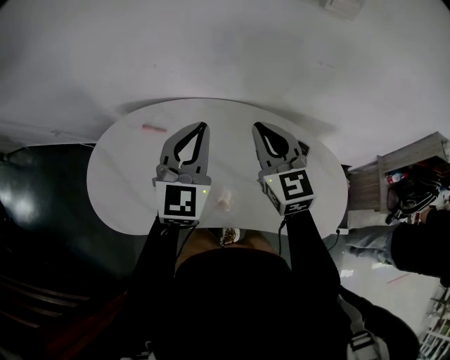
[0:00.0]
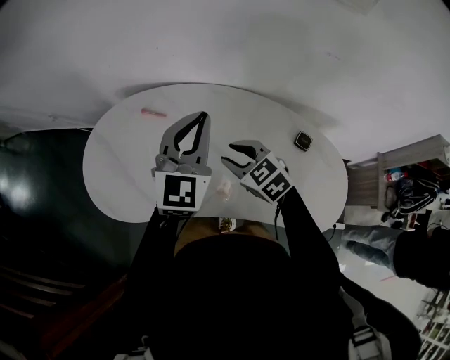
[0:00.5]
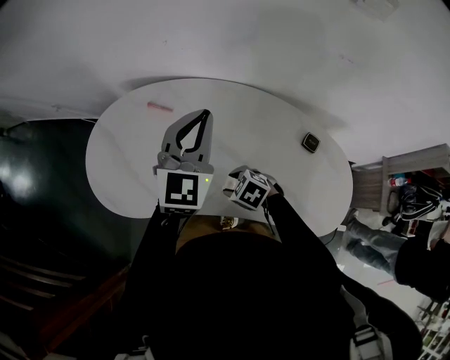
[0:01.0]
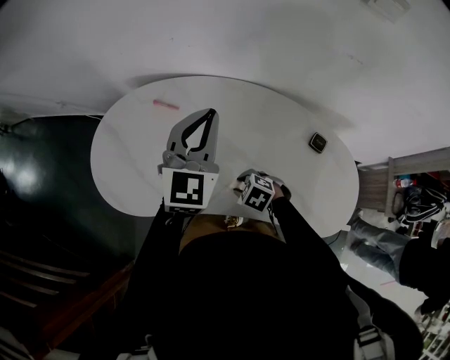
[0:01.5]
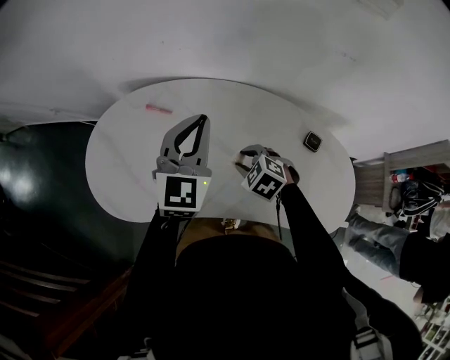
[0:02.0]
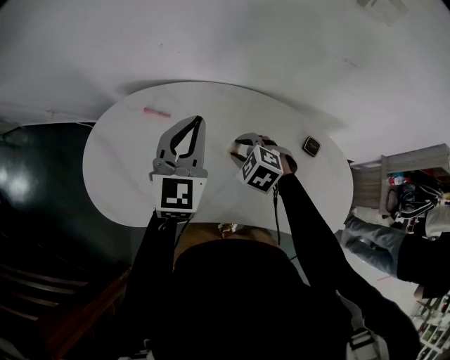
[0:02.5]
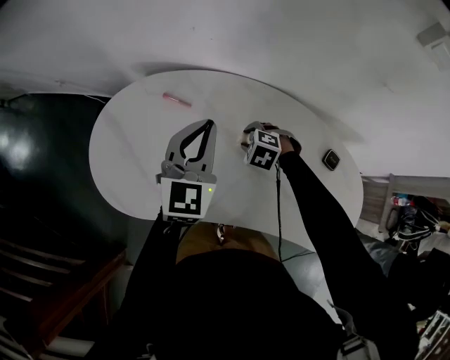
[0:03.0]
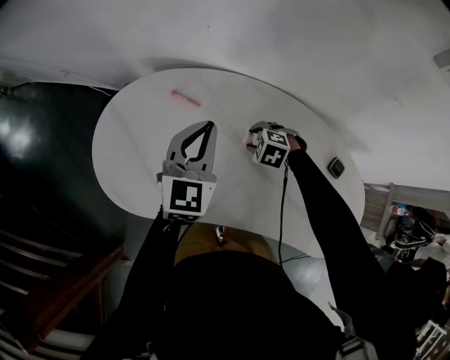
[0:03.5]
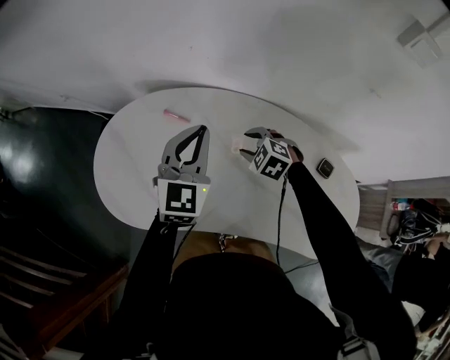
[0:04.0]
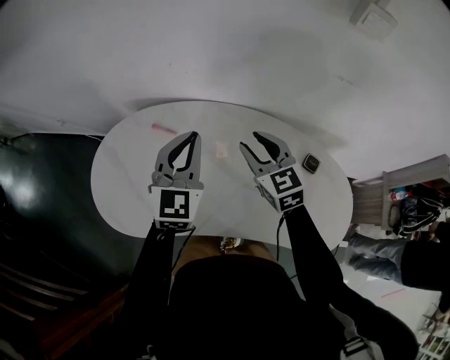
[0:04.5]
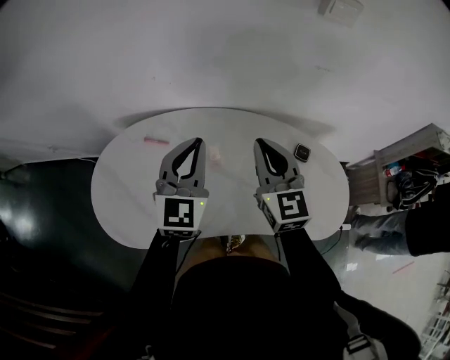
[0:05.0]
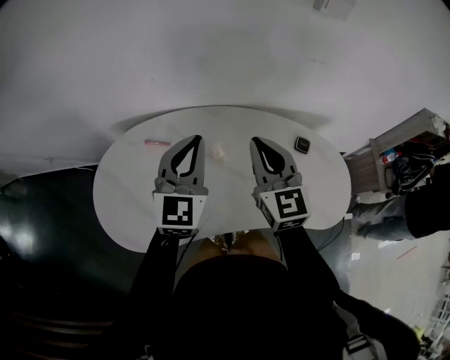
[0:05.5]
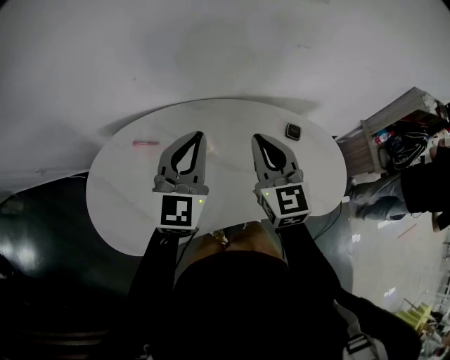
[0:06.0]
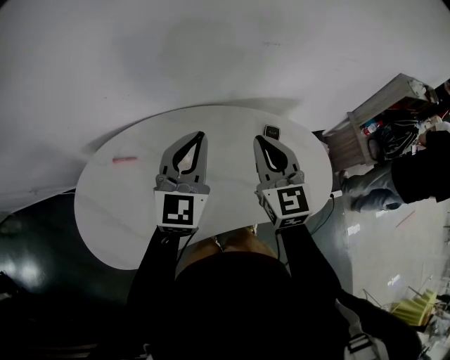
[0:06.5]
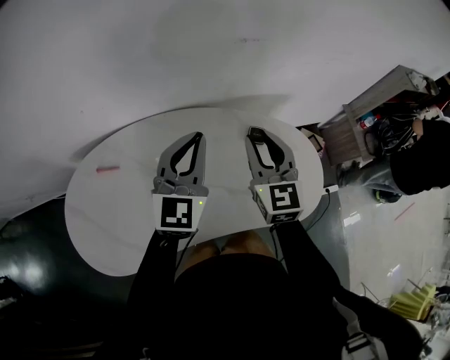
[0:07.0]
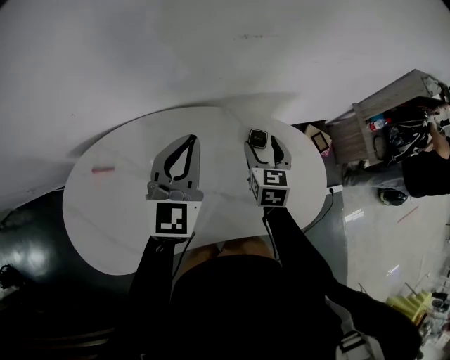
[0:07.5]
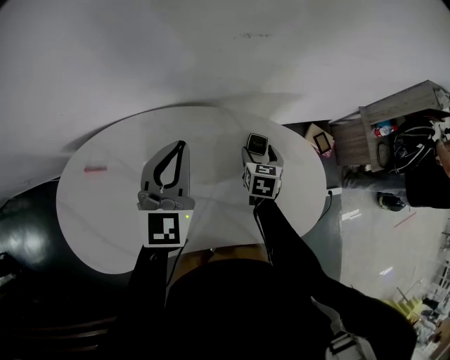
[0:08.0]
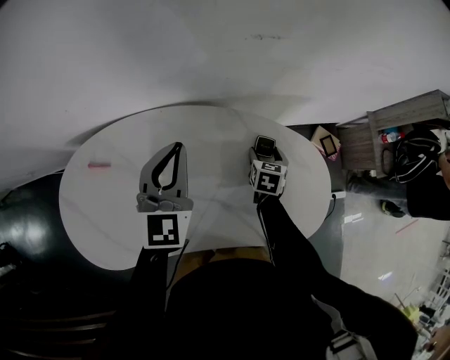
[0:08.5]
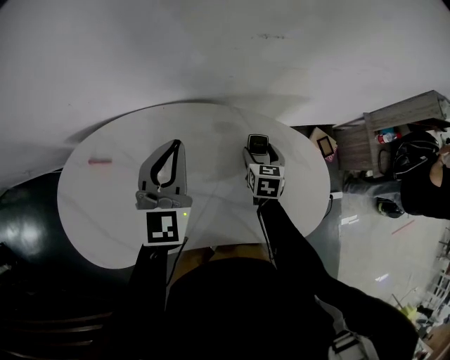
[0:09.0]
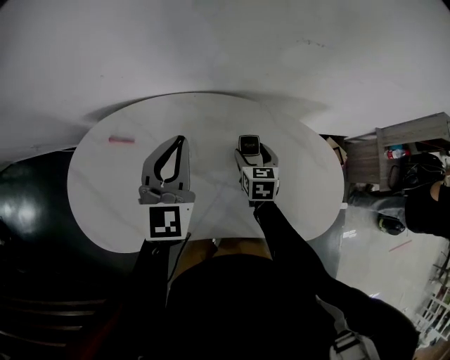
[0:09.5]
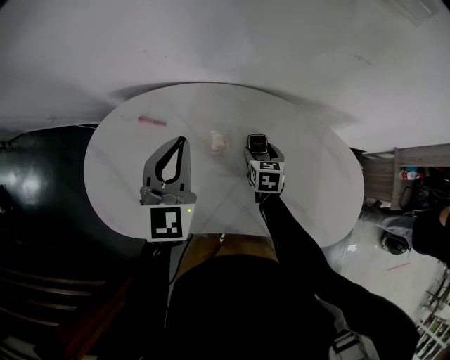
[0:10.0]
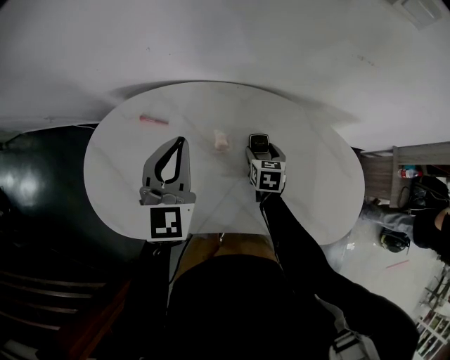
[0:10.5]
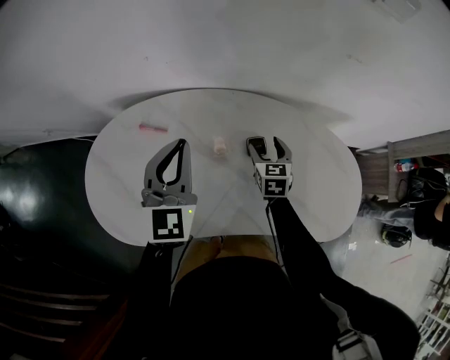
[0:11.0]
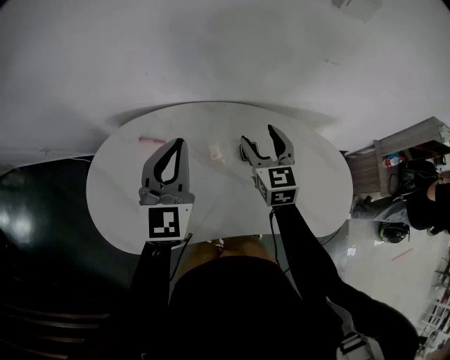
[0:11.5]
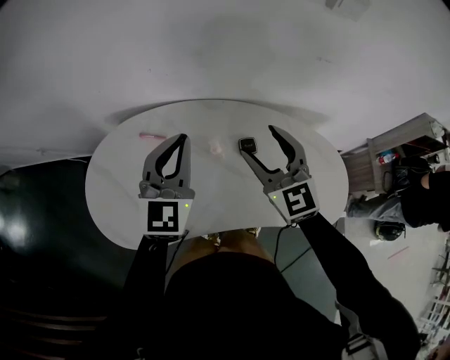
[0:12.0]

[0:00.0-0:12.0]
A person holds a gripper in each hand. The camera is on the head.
0:00.0 to 0:02.0: The right gripper shifts about 25 cm downward, tips its fingers downward by approximately 50 degrees, and opens up, while the left gripper moves approximately 5 cm.
0:02.0 to 0:04.0: The right gripper is displaced forward by approximately 10 cm, while the left gripper goes approximately 5 cm forward.
0:04.0 to 0:06.0: The left gripper changes place by some 10 cm, and swivels approximately 20 degrees, while the right gripper goes roughly 25 cm upward, points its fingers approximately 50 degrees further upward, and closes its fingers.
0:06.0 to 0:08.0: The right gripper heads downward, to the right and forward, covering roughly 40 cm, tips its fingers downward by roughly 40 degrees, and opens its fingers. Meanwhile the left gripper goes roughly 20 cm to the right, forward and downward.
0:08.0 to 0:10.0: The left gripper shifts roughly 20 cm to the left and backward, while the right gripper goes roughly 20 cm to the left, and swivels approximately 20 degrees.
0:10.0 to 0:12.0: The left gripper shifts about 5 cm upward, while the right gripper moves upward, approximately 30 cm, and points its fingers approximately 40 degrees further upward.

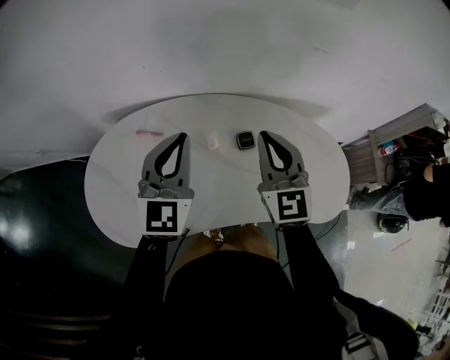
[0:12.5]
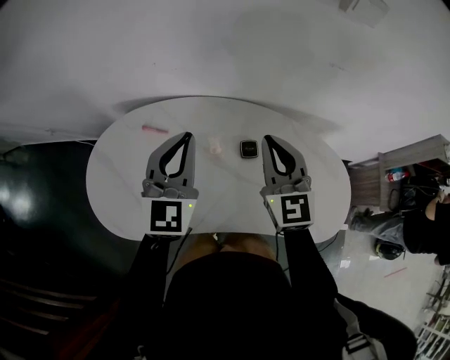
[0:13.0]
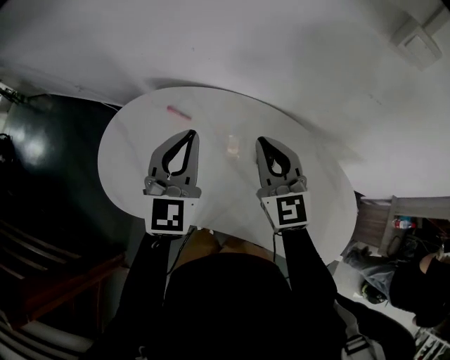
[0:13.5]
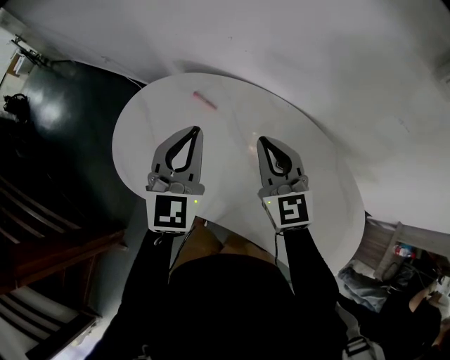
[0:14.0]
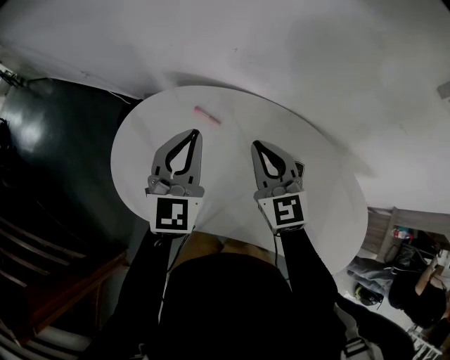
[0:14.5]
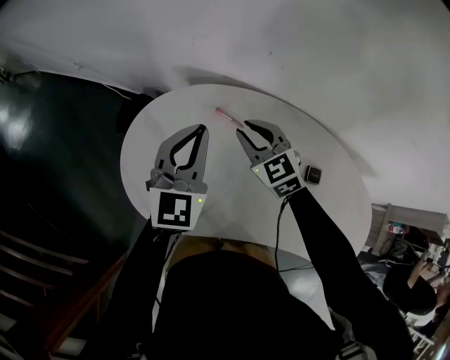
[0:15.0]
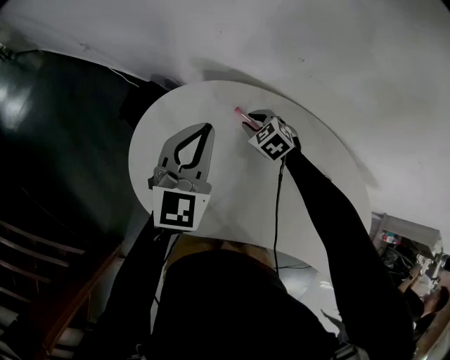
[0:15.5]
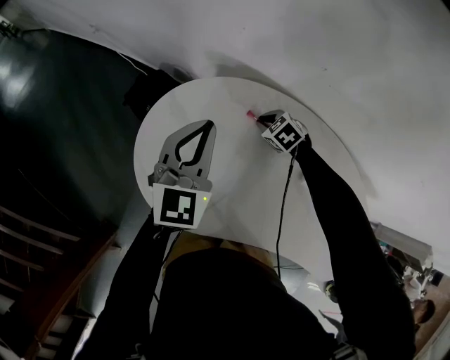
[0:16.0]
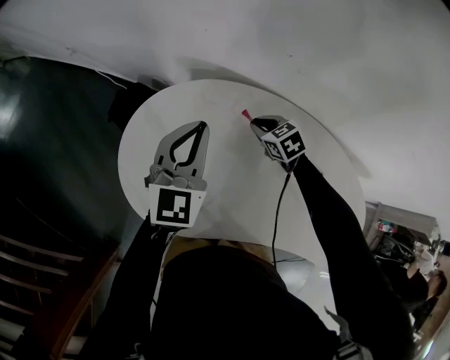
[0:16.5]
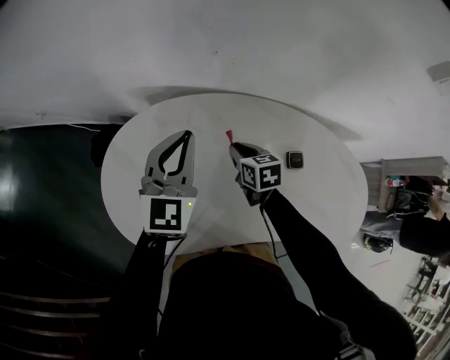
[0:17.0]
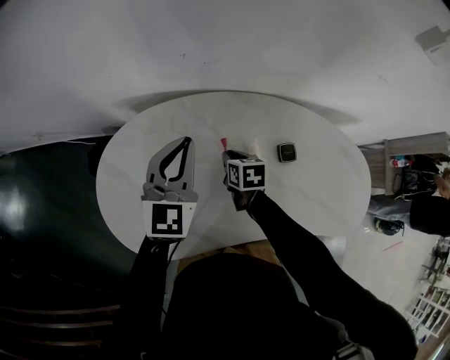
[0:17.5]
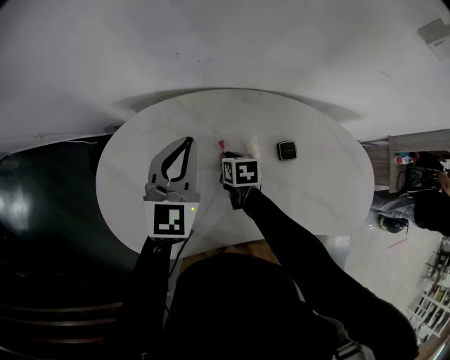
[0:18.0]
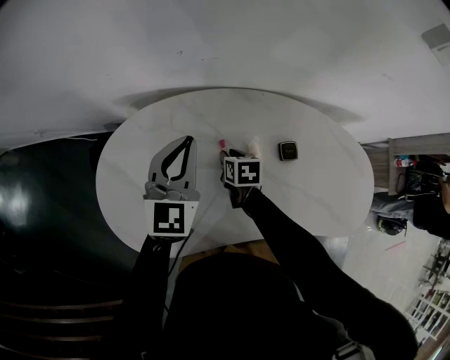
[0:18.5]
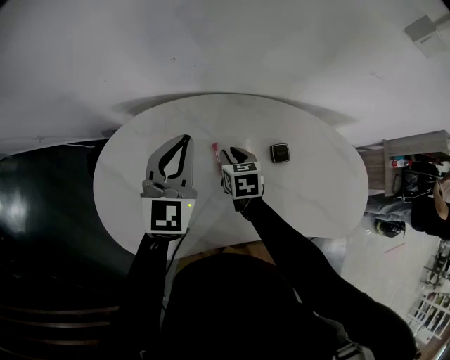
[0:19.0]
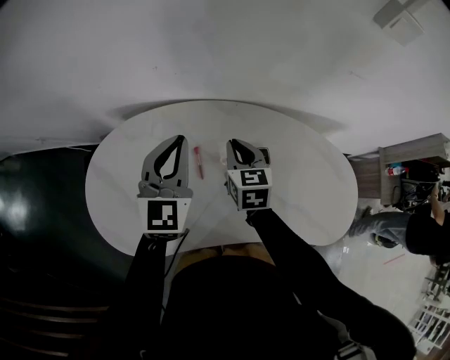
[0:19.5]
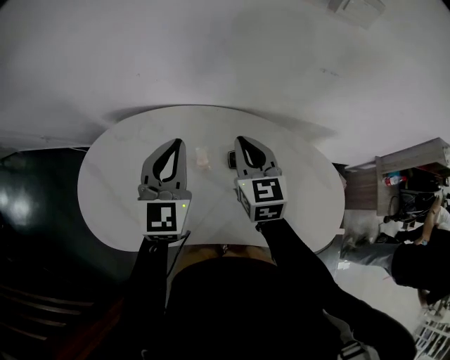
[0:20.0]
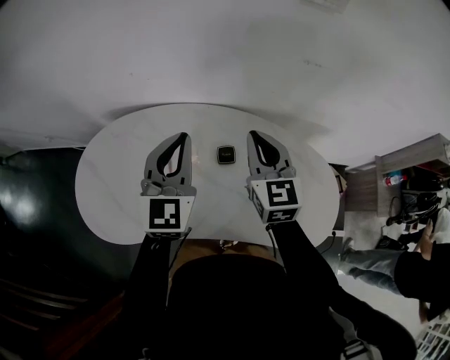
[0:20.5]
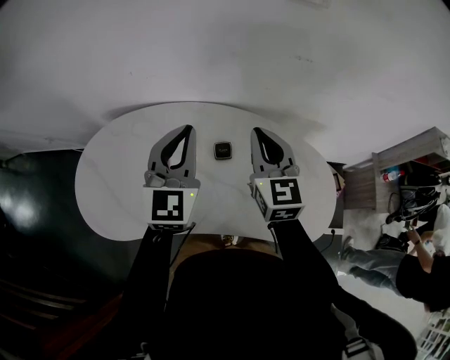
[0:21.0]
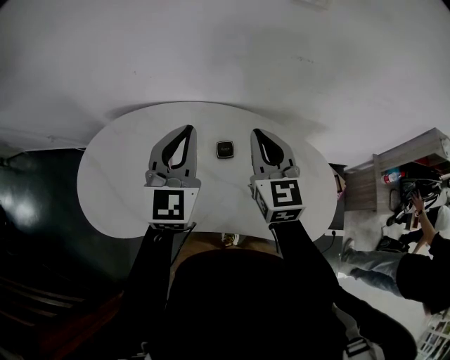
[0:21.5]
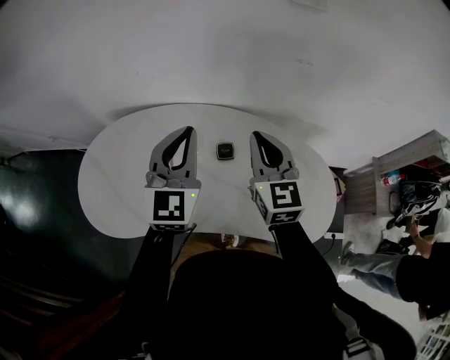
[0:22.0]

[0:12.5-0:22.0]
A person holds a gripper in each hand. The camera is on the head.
0:12.5 to 0:14.5: The right gripper moves approximately 20 cm, and rotates roughly 30 degrees. Meanwhile the left gripper moves roughly 15 cm, and rotates about 20 degrees.
0:14.5 to 0:16.5: The left gripper travels to the left, forward and downward by roughly 15 cm; the right gripper goes some 25 cm downward and forward, and angles its fingers downward, by approximately 50 degrees.
0:16.5 to 0:18.0: The left gripper moves to the right, about 15 cm; the right gripper is displaced to the right, backward and downward by about 15 cm, and twists some 60 degrees clockwise, seen from behind.
0:18.0 to 0:20.0: The right gripper heads upward and to the right, covering about 30 cm, and angles its fingers upward, by about 40 degrees. The left gripper shifts about 15 cm to the right and upward.
0:20.0 to 0:22.0: The right gripper travels to the right, upward and backward by about 10 cm. Meanwhile the left gripper travels to the right by about 5 cm.

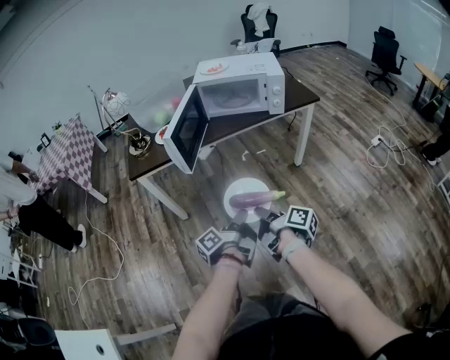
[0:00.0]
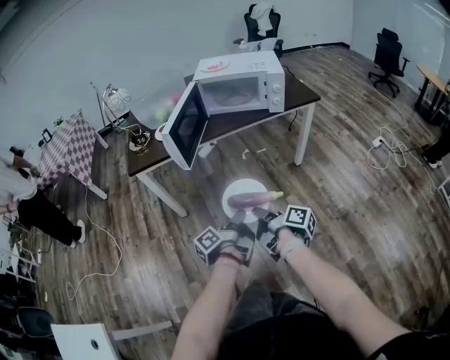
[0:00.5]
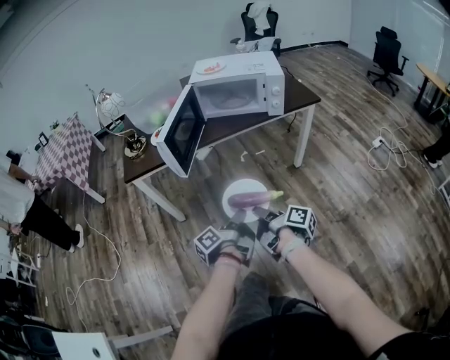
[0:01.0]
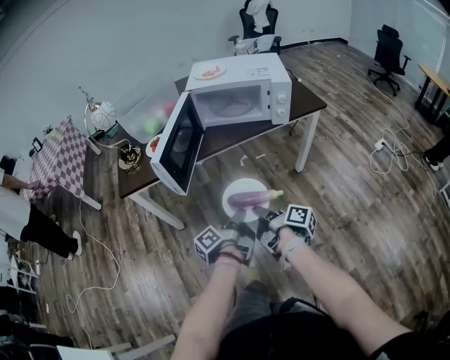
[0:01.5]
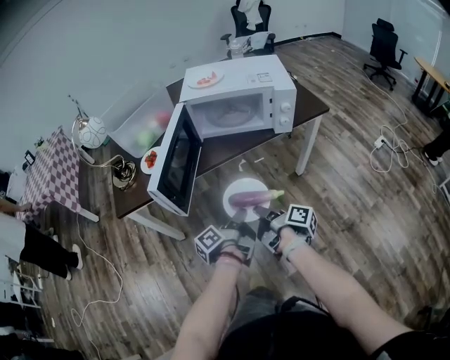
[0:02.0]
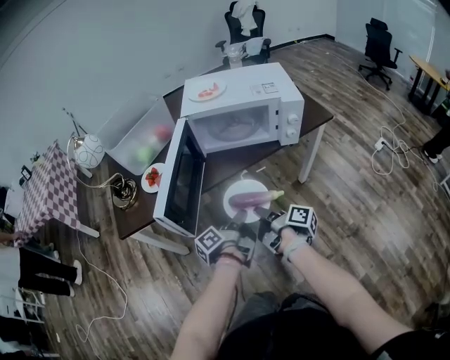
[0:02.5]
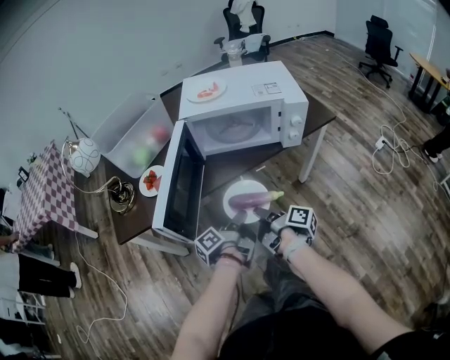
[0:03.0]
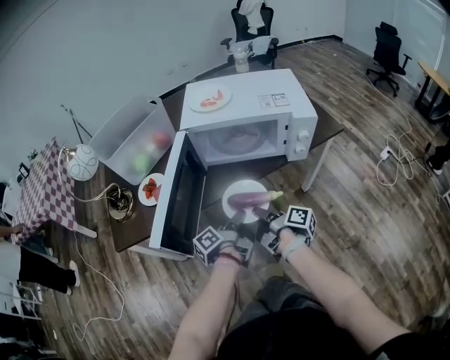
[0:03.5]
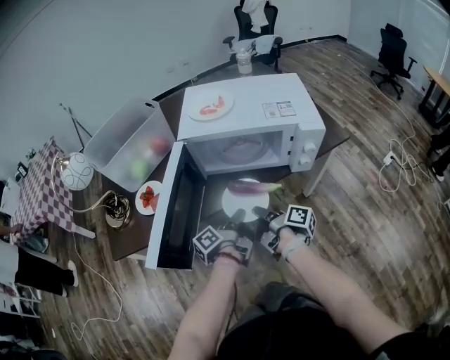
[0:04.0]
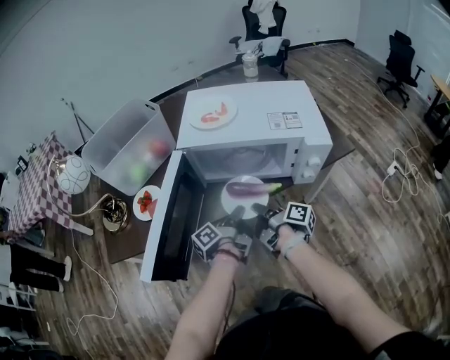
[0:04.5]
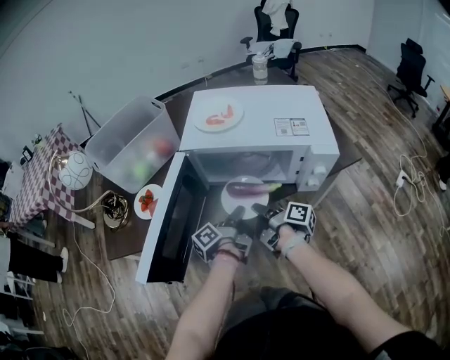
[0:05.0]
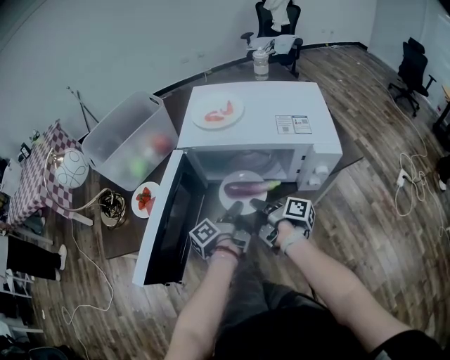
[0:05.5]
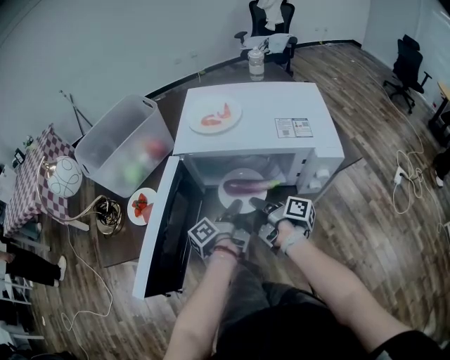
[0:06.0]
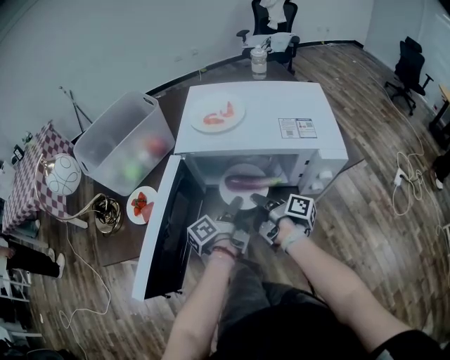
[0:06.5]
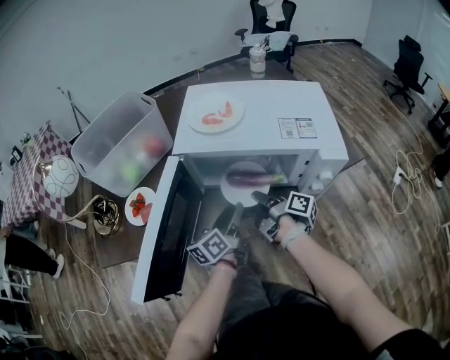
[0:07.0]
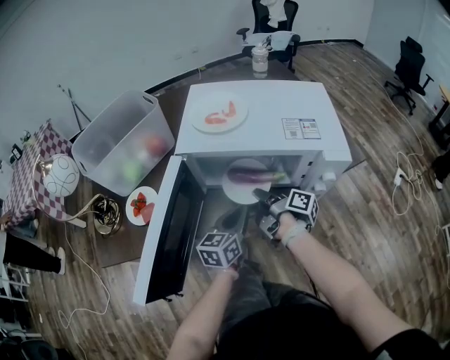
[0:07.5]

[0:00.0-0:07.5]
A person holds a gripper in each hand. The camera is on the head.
0:00.0 to 0:02.0: The two grippers go some 20 cm forward.
0:02.0 to 0:04.0: Both grippers move forward, roughly 20 cm.
0:04.0 to 0:05.5: Both grippers move forward, roughly 10 cm.
0:05.5 to 0:07.5: The right gripper moves forward, about 5 cm; the left gripper rolls clockwise, seen from behind, by some 70 degrees, and opens and closes again.
